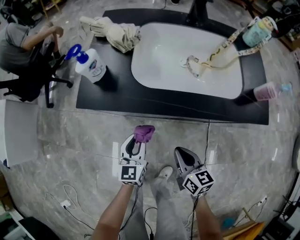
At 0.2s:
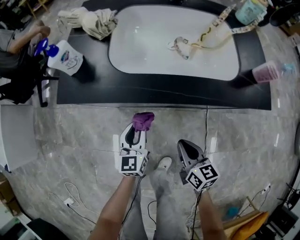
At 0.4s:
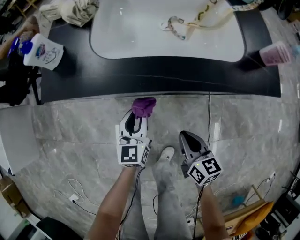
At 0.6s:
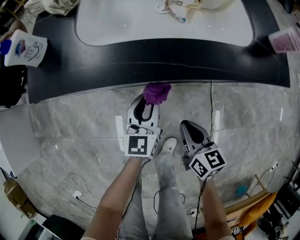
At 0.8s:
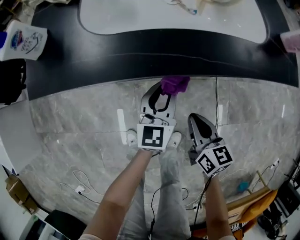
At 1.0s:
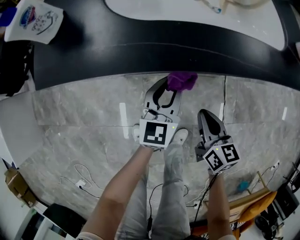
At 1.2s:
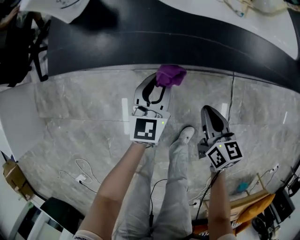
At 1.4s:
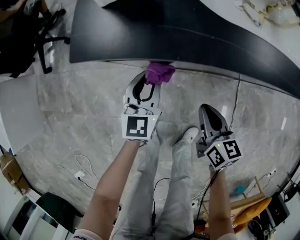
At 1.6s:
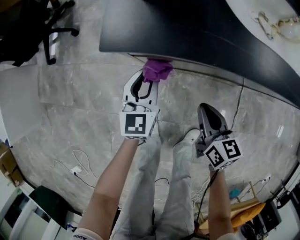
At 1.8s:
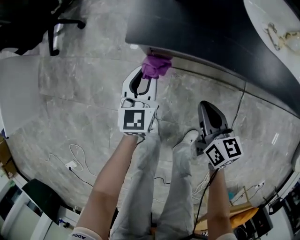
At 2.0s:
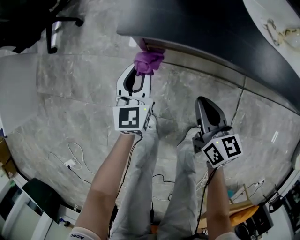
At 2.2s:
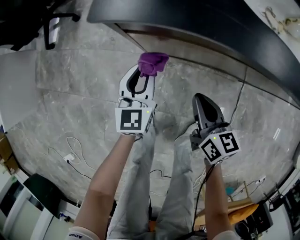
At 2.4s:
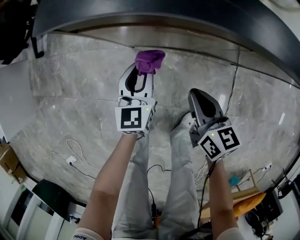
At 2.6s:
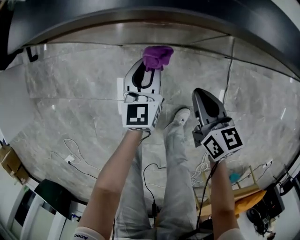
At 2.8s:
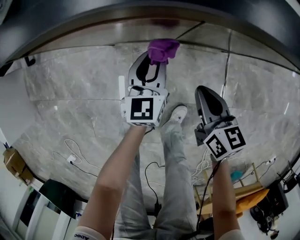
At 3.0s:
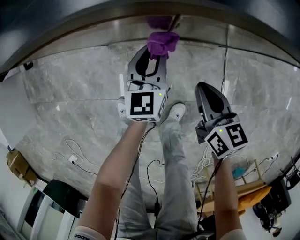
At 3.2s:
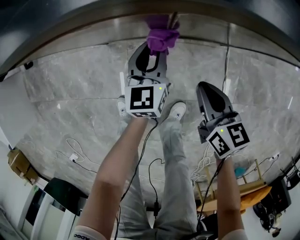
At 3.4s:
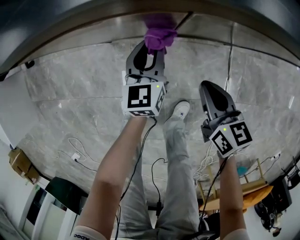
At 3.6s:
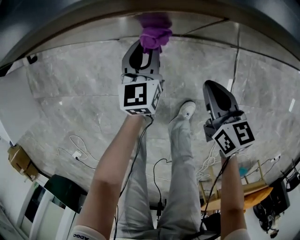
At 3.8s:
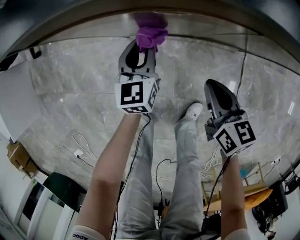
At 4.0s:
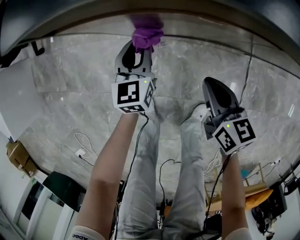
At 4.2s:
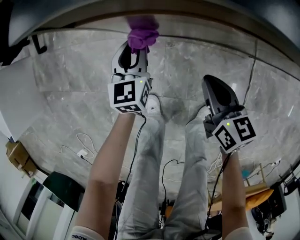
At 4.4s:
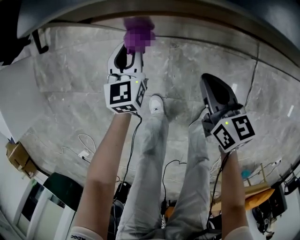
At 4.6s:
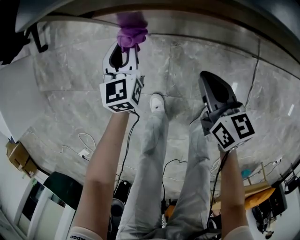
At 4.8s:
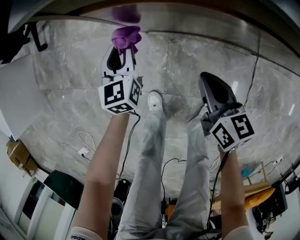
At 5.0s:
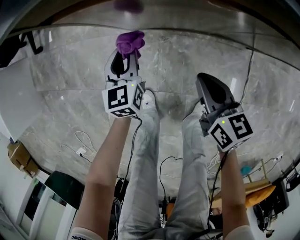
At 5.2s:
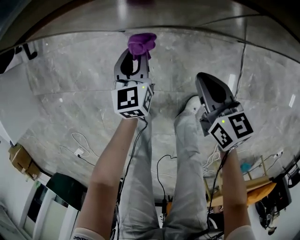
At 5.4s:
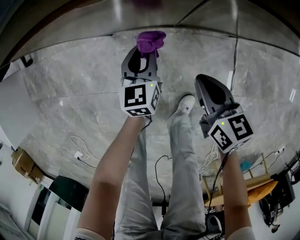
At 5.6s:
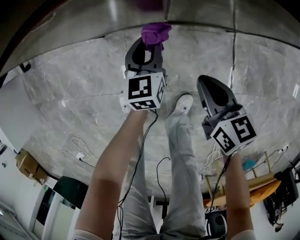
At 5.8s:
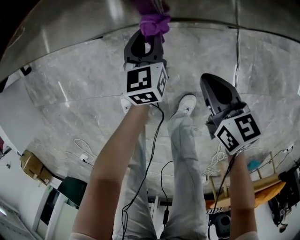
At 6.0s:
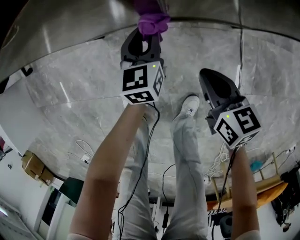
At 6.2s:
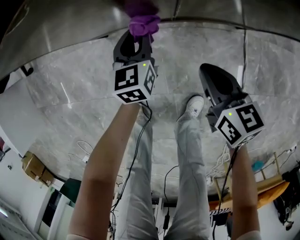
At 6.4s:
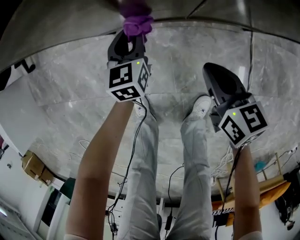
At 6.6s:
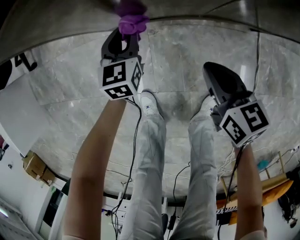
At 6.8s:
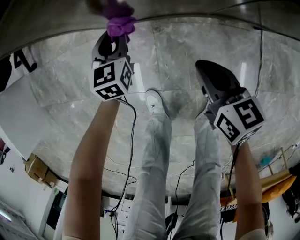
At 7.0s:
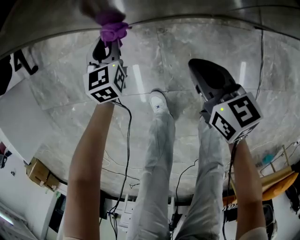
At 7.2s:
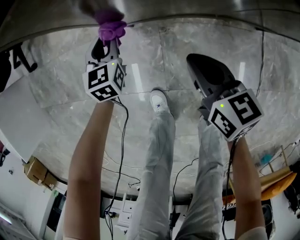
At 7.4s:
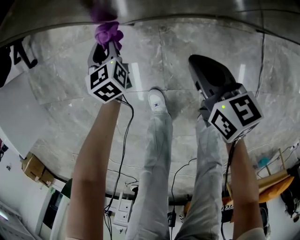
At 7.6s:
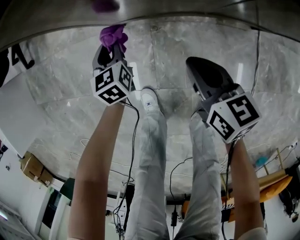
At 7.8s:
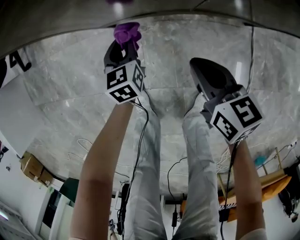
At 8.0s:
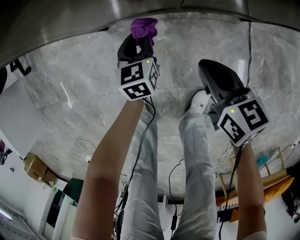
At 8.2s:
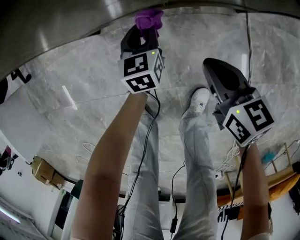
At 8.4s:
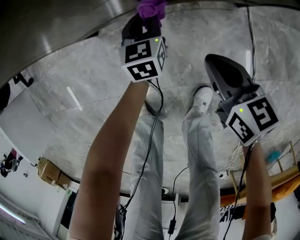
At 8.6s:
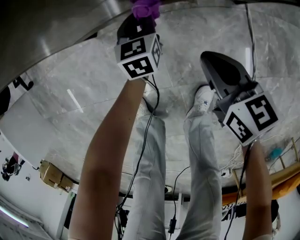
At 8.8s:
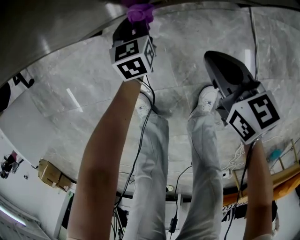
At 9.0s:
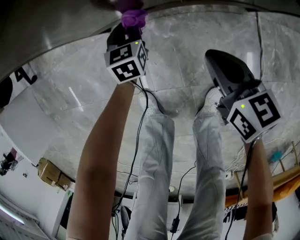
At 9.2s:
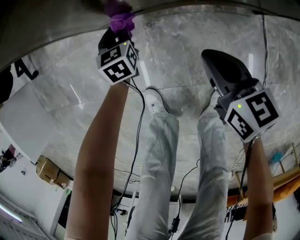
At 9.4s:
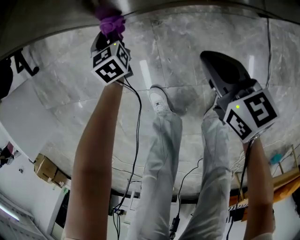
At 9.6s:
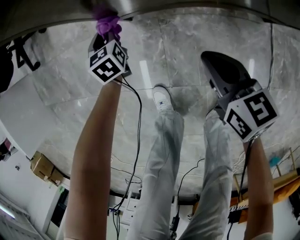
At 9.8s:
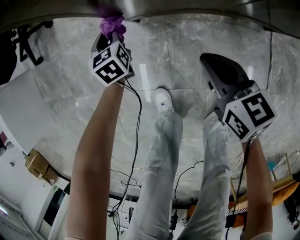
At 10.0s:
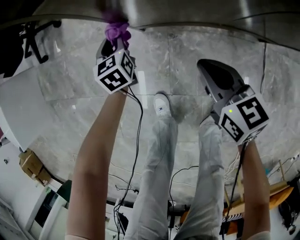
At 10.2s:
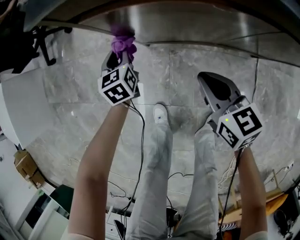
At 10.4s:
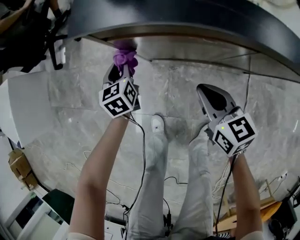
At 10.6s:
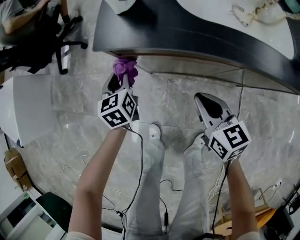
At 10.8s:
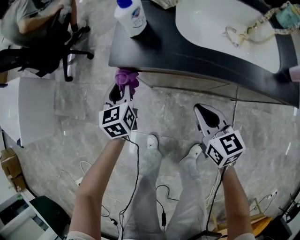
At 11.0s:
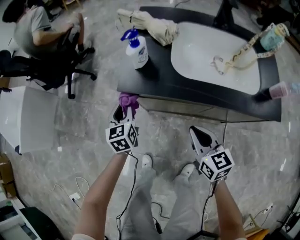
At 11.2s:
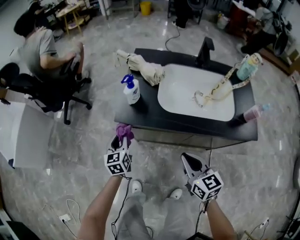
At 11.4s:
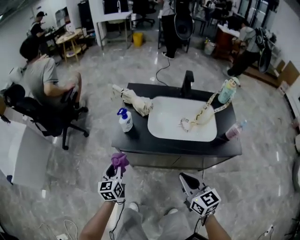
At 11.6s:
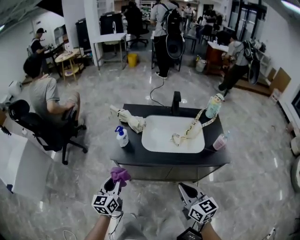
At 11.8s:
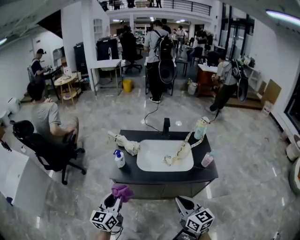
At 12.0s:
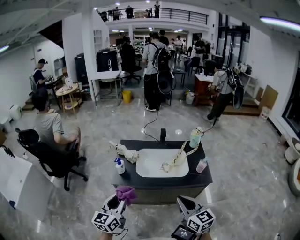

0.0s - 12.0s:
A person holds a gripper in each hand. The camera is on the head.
0.0s - 1.6s: The right gripper is displaced to the left and downward by some 15 cm; the left gripper shifts some 20 cm to the left, downward and forward.
1.6s - 3.0s: The grippers both shift to the right by some 25 cm.
3.0s - 4.4s: The grippers both shift to the left by about 25 cm.
4.4s - 6.0s: The left gripper moves to the right, roughly 30 cm; the right gripper travels to the right, backward and downward by roughly 25 cm.
6.0s - 7.6s: The left gripper shifts some 30 cm to the left. The right gripper heads to the left, covering approximately 20 cm.
7.6s - 9.0s: The left gripper travels to the right and downward by approximately 15 cm; the right gripper shifts approximately 10 cm to the right.
9.0s - 10.4s: The grippers both shift upward and to the left by approximately 30 cm. The left gripper swivels approximately 20 degrees.
10.4s - 12.0s: Both grippers travel together upward, some 50 cm. The right gripper rotates some 30 degrees, while the left gripper angles its fingers upward, by roughly 40 degrees.

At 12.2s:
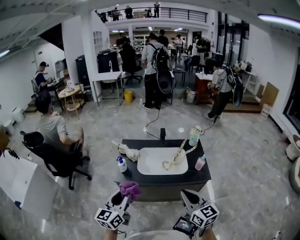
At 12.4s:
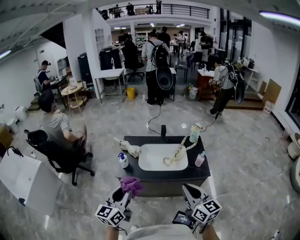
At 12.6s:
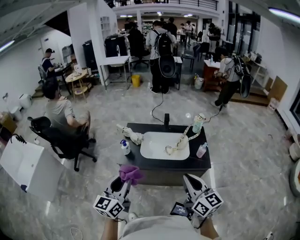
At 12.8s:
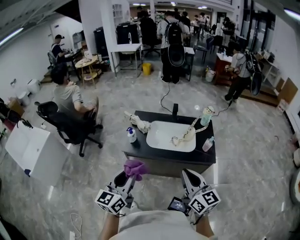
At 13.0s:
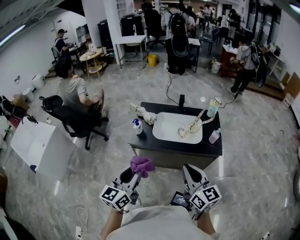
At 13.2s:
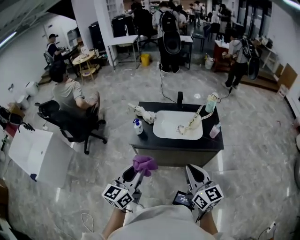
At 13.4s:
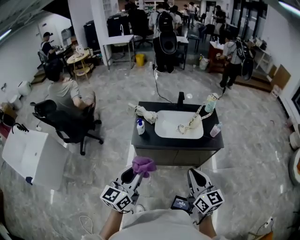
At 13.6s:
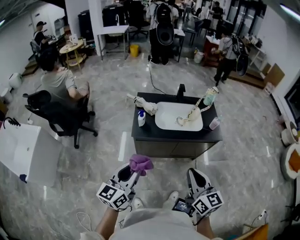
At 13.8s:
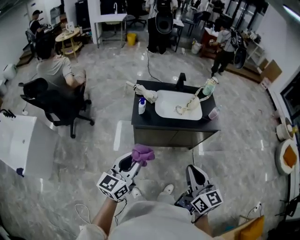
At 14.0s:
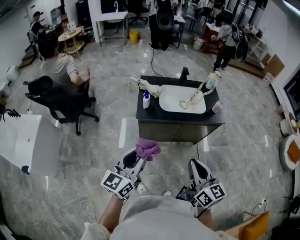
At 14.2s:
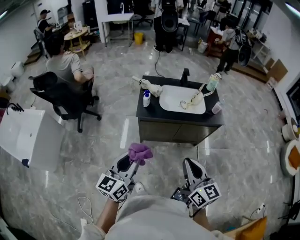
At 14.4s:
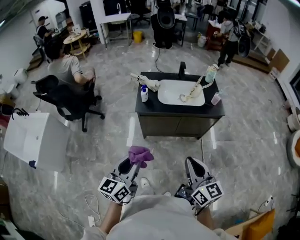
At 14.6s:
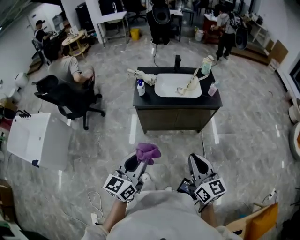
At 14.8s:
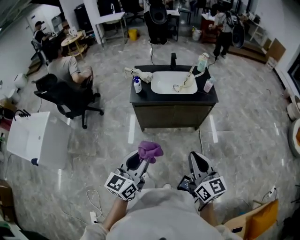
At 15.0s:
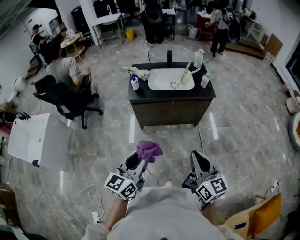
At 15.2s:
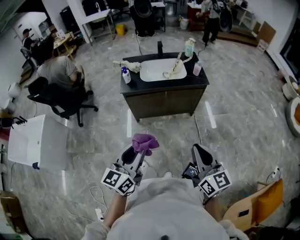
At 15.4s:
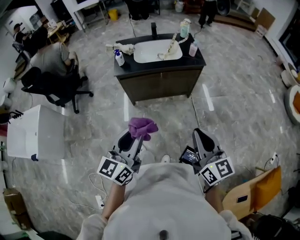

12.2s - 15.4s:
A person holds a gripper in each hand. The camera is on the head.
12.2s - 13.8s: The two grippers go some 20 cm to the left and backward.
13.8s - 15.4s: The grippers both shift backward and to the right by roughly 30 cm.

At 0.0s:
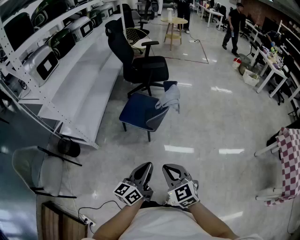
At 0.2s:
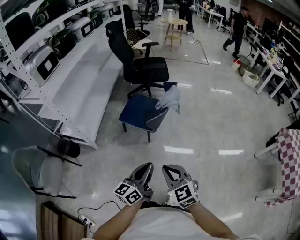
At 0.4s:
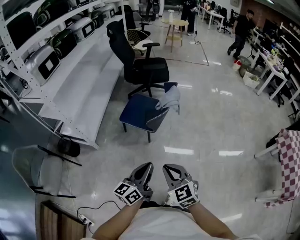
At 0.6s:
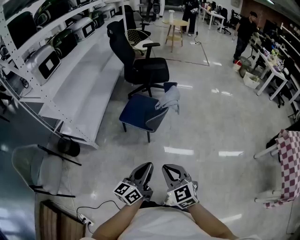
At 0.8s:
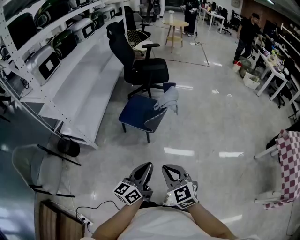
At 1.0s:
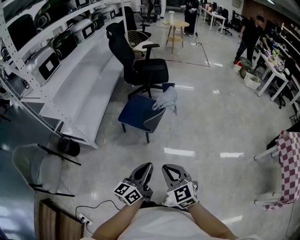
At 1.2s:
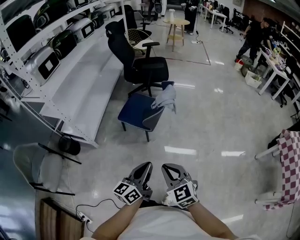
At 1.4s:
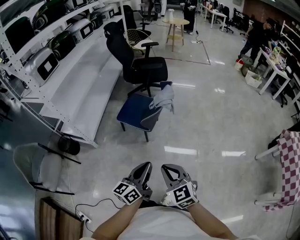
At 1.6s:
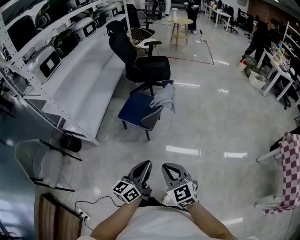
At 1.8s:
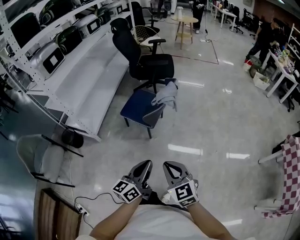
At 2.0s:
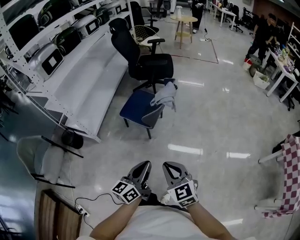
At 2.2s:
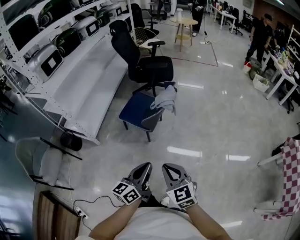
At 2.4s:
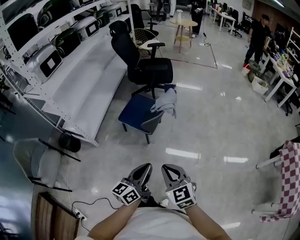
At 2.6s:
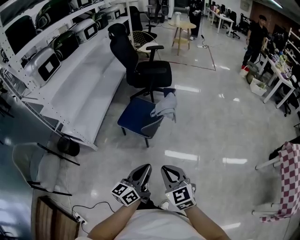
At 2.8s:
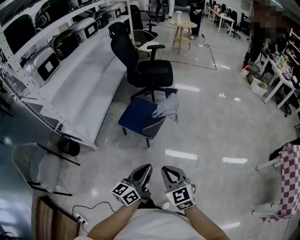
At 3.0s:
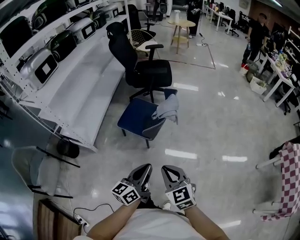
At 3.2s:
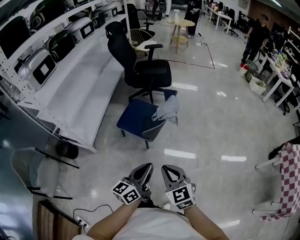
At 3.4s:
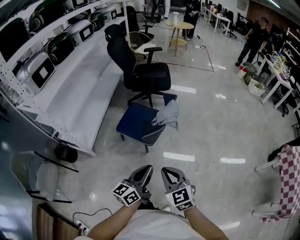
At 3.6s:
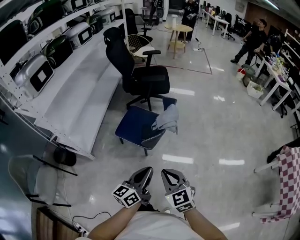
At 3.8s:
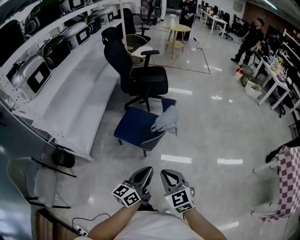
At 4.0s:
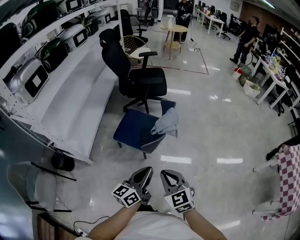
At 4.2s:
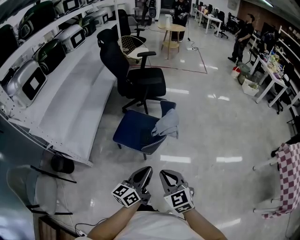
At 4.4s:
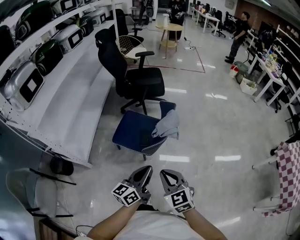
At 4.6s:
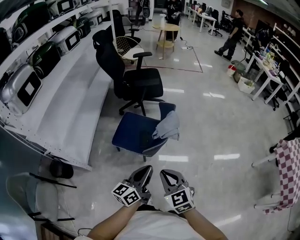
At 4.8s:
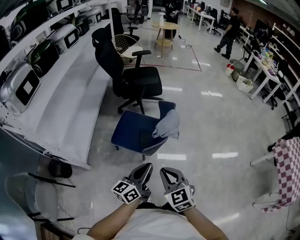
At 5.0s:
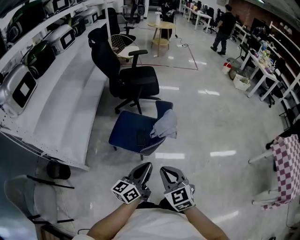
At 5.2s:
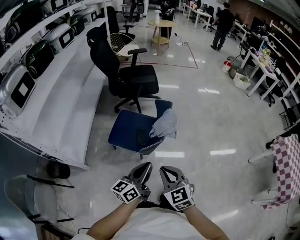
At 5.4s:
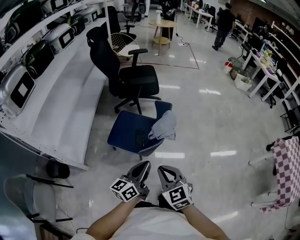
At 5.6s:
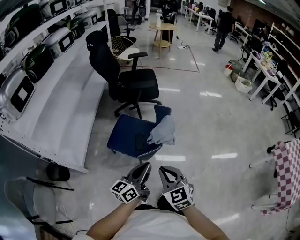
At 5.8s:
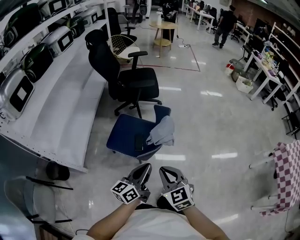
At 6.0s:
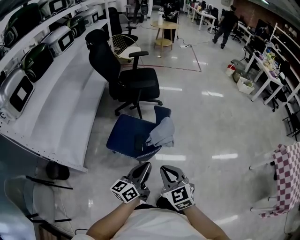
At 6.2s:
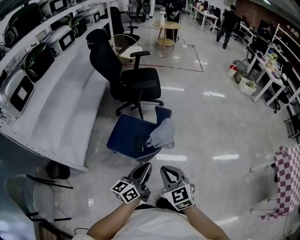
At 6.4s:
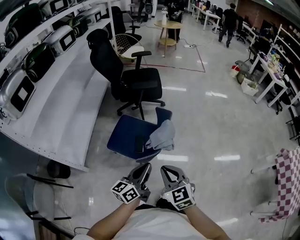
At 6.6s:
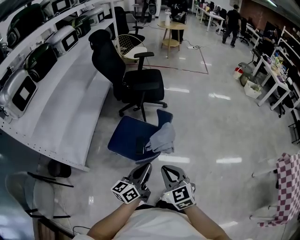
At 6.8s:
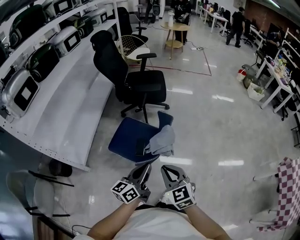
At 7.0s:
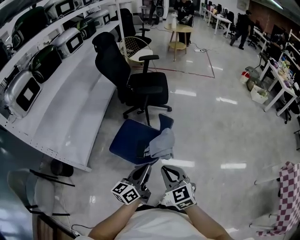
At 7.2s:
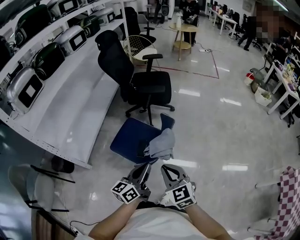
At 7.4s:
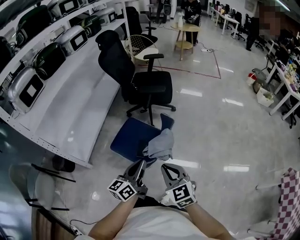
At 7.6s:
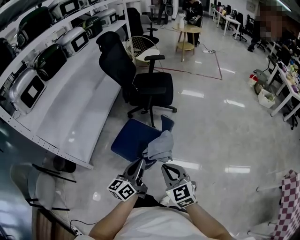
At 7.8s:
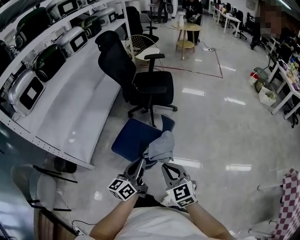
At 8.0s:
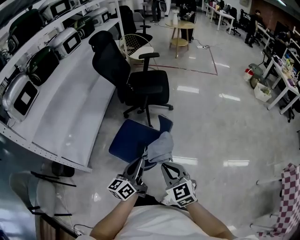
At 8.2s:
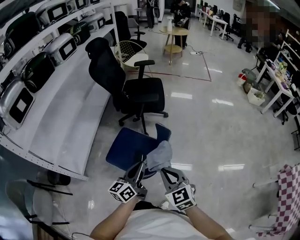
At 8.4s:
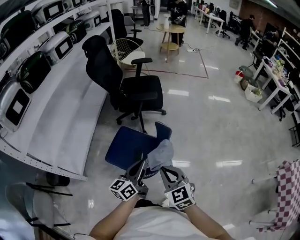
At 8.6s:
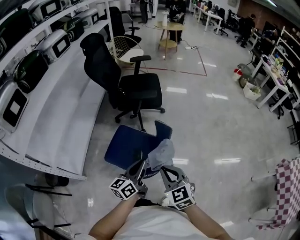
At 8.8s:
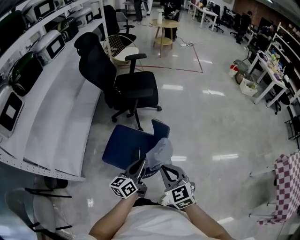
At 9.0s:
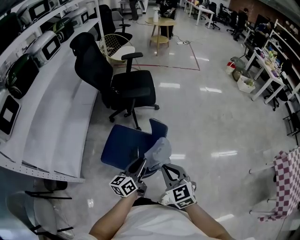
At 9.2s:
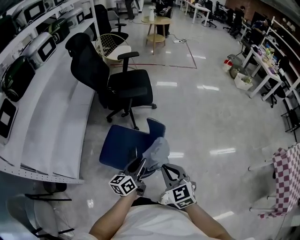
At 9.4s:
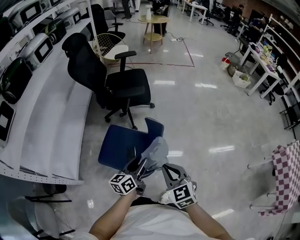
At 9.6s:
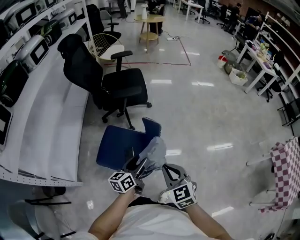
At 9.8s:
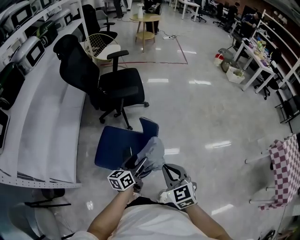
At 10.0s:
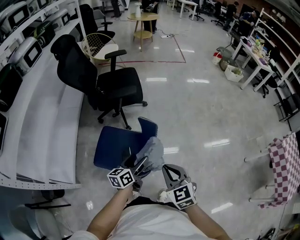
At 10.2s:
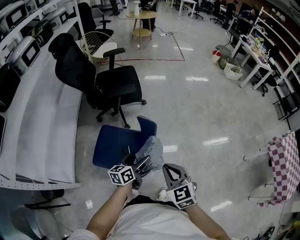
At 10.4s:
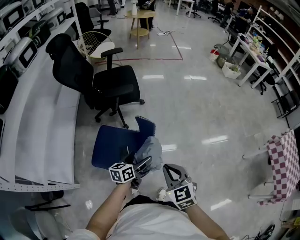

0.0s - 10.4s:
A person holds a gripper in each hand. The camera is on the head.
0.0s - 1.4s: Both grippers travel together to the right, approximately 5 cm.
1.4s - 3.0s: Both grippers travel together forward, about 10 cm.
3.0s - 4.4s: The right gripper heads forward and to the left, covering some 10 cm. Meanwhile the left gripper heads forward, covering about 10 cm.
4.4s - 6.0s: The two grippers go some 10 cm forward.
6.0s - 7.4s: The left gripper is displaced forward by some 5 cm, while the right gripper shifts approximately 10 cm forward and to the right.
7.4s - 9.0s: The left gripper goes some 10 cm forward and downward. The right gripper moves forward, roughly 5 cm.
9.0s - 10.4s: The left gripper goes roughly 10 cm downward and forward, swivels some 20 degrees, and opens up.
